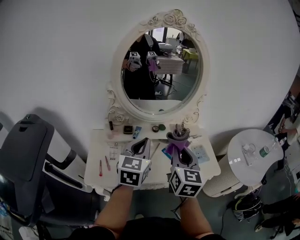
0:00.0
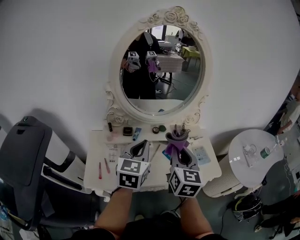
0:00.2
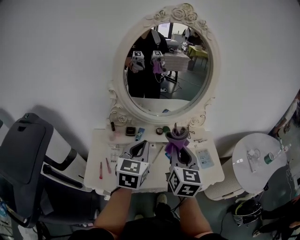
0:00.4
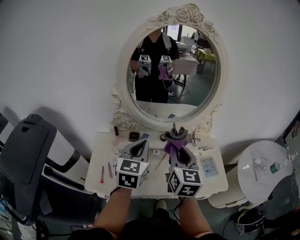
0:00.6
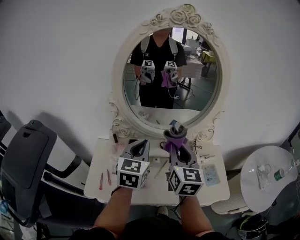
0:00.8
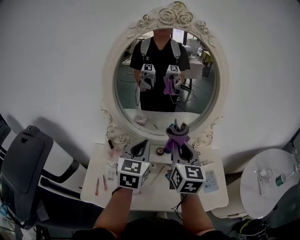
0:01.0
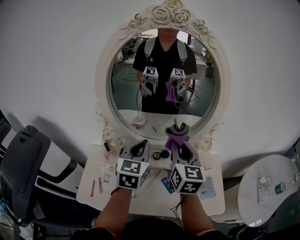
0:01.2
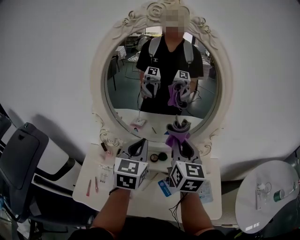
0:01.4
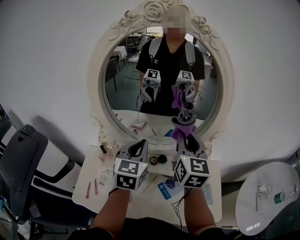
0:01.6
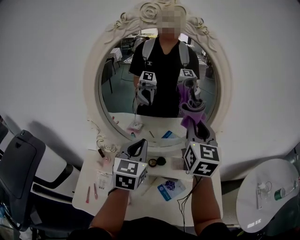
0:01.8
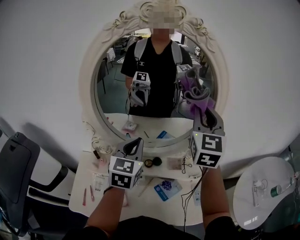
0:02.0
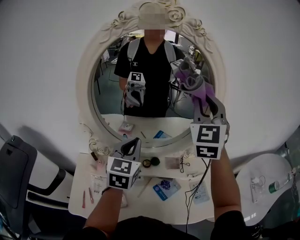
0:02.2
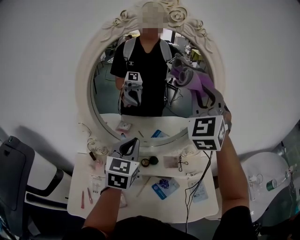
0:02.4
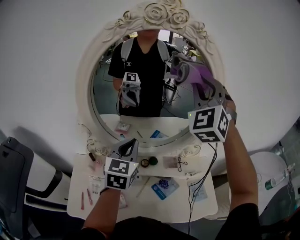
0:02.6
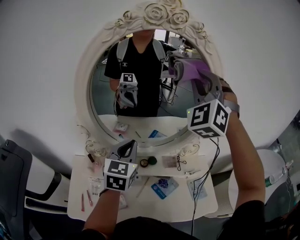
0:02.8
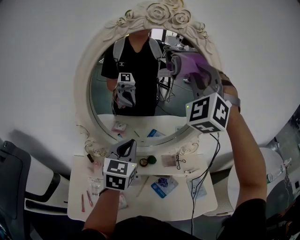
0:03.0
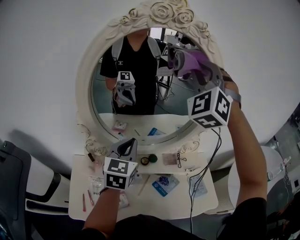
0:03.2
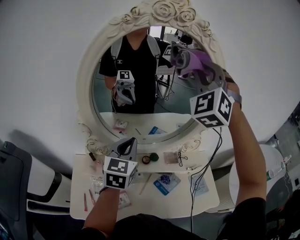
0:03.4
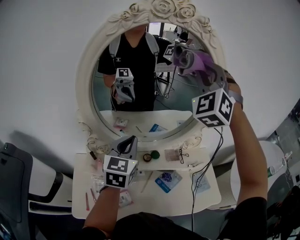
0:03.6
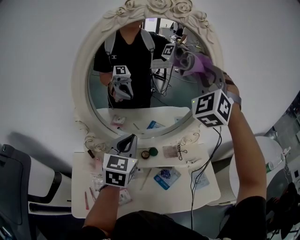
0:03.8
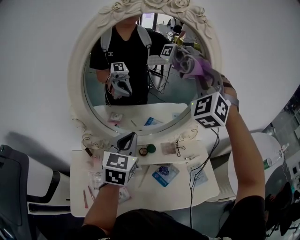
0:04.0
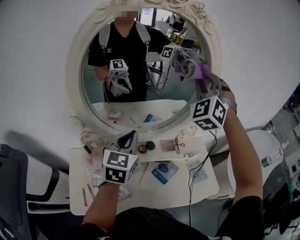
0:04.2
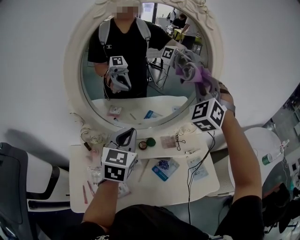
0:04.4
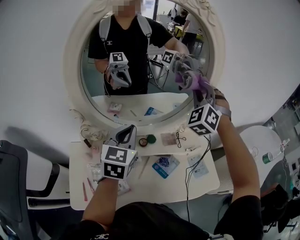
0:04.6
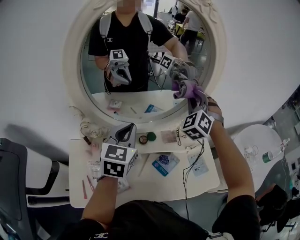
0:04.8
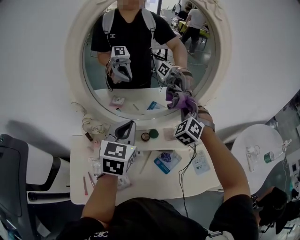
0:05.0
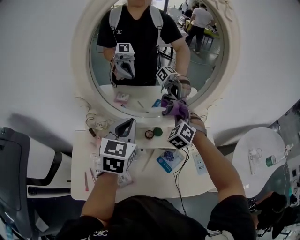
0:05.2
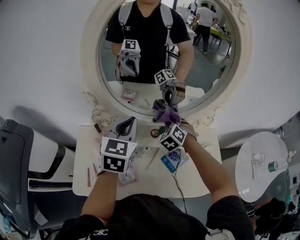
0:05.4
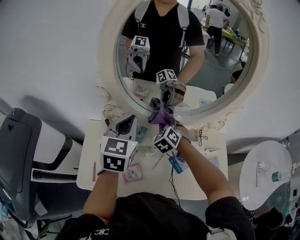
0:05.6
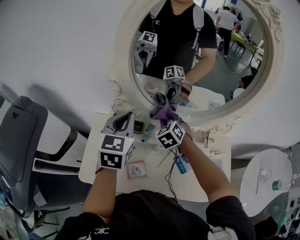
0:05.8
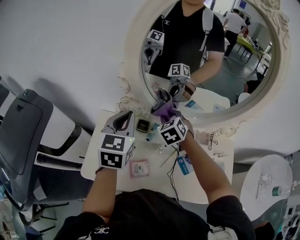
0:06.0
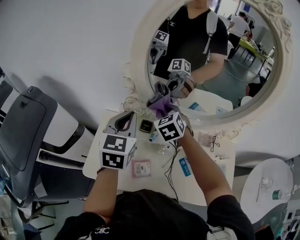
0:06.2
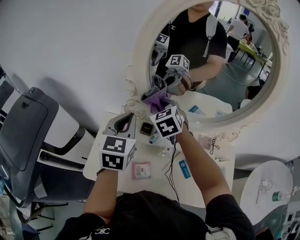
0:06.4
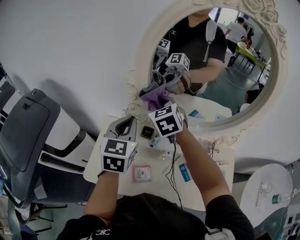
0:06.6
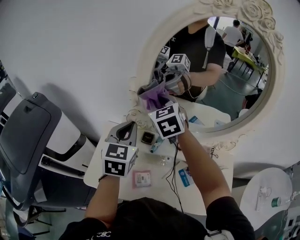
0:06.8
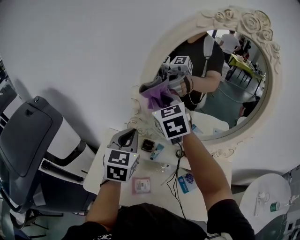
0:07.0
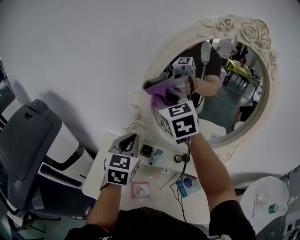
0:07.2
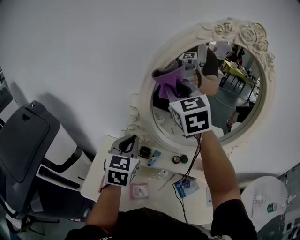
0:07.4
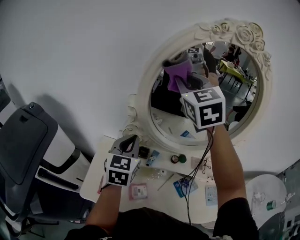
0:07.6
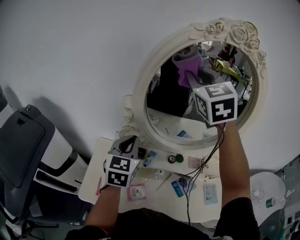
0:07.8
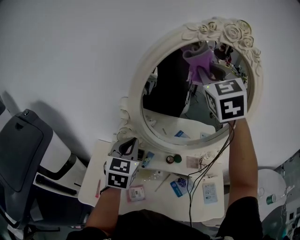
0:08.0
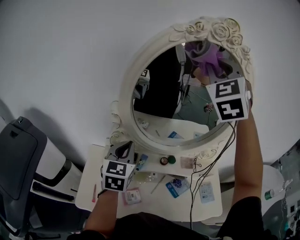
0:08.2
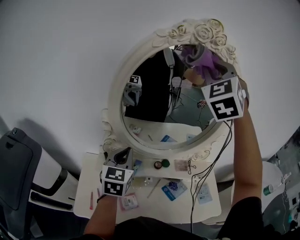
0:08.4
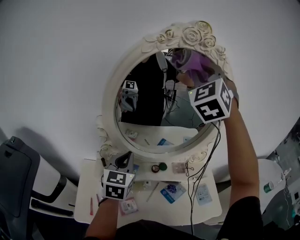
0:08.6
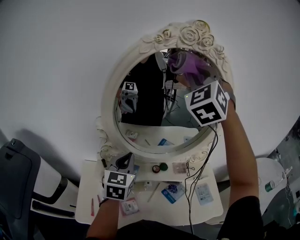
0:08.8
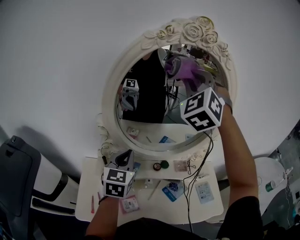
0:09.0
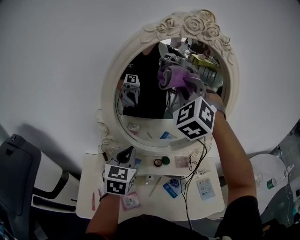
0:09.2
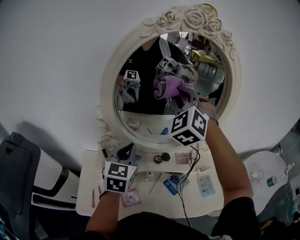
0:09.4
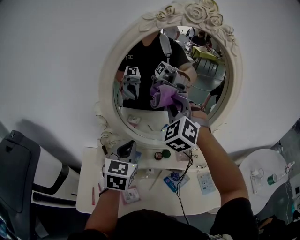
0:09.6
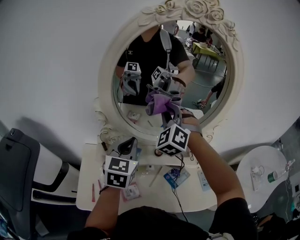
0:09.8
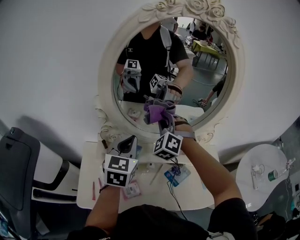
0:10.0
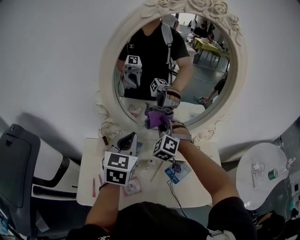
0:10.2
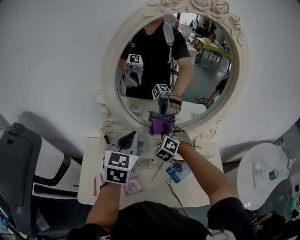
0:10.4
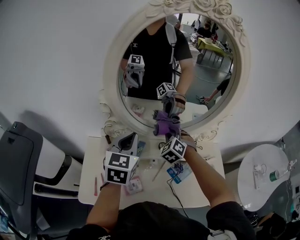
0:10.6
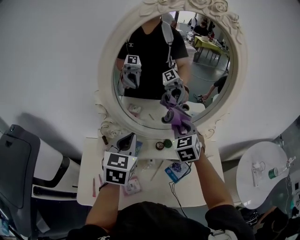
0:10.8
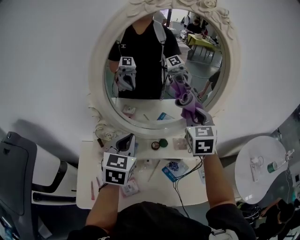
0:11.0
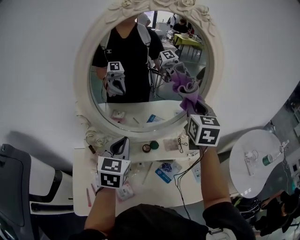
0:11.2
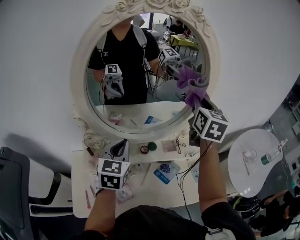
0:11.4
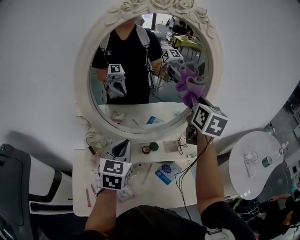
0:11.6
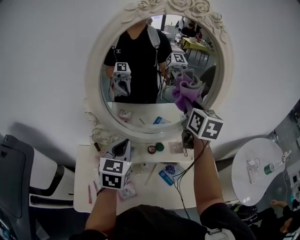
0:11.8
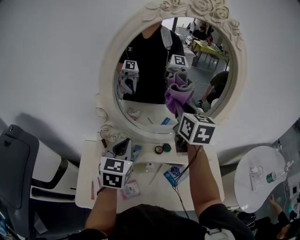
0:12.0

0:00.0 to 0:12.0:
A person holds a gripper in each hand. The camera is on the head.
0:00.0 to 0:01.6: Both grippers move forward, some 25 cm.
0:01.6 to 0:03.0: The right gripper goes about 20 cm upward, and rolls counterclockwise, seen from behind, by roughly 80 degrees.
0:03.0 to 0:04.4: The right gripper travels downward and to the right by approximately 15 cm.
0:04.4 to 0:06.0: The right gripper goes some 30 cm downward, and tips its fingers downward by roughly 40 degrees. The left gripper shifts by roughly 15 cm, and swivels approximately 20 degrees.
0:06.0 to 0:07.6: The right gripper moves upward, approximately 40 cm, and points its fingers some 30 degrees further upward.
0:07.6 to 0:09.0: The right gripper shifts roughly 15 cm to the right, and swivels approximately 40 degrees. The left gripper moves to the right, approximately 10 cm.
0:09.0 to 0:10.4: The right gripper shifts some 40 cm downward, and tilts its fingers roughly 30 degrees downward.
0:10.4 to 0:12.0: The right gripper moves upward, some 25 cm, and rotates around the line of its fingers by about 70 degrees, clockwise from behind.

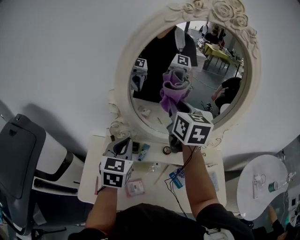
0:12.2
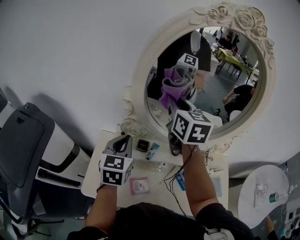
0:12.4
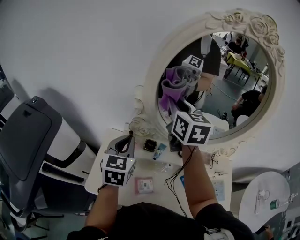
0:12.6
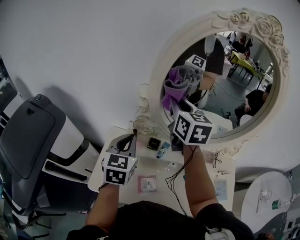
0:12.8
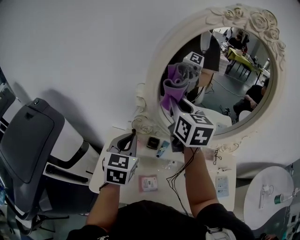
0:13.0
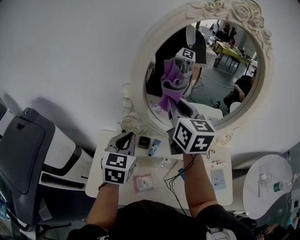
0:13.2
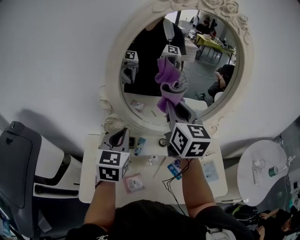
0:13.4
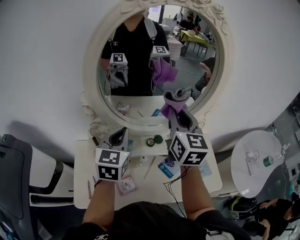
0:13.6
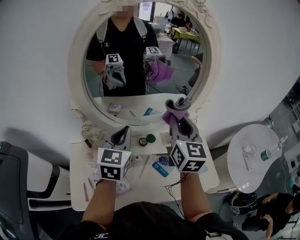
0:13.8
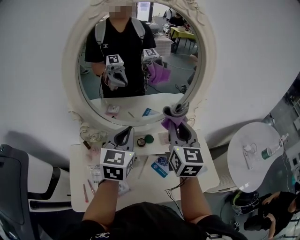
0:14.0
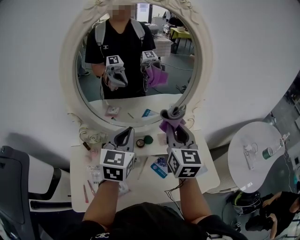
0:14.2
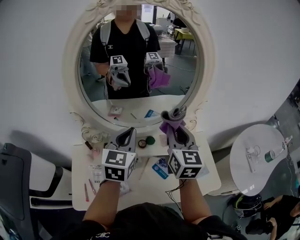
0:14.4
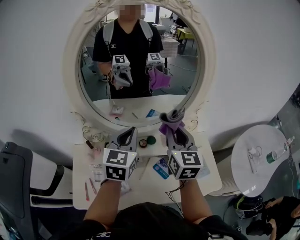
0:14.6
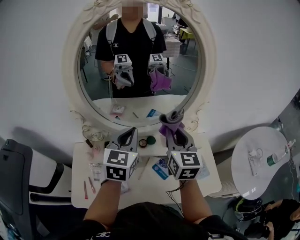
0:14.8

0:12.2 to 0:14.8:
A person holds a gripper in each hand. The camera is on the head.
0:12.2 to 0:13.4: The right gripper goes to the left and returns, about 10 cm each way; the left gripper travels to the left and back again, roughly 10 cm each way.
0:13.4 to 0:14.8: The right gripper heads to the right and downward, covering roughly 20 cm; the left gripper goes about 15 cm to the right.

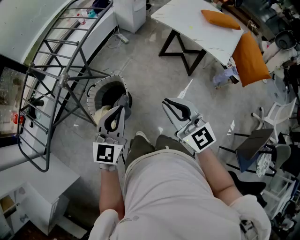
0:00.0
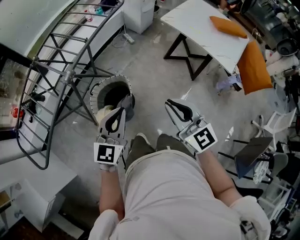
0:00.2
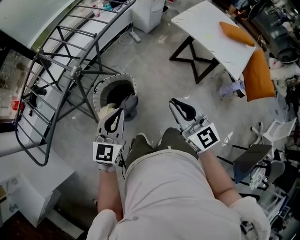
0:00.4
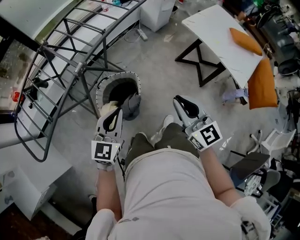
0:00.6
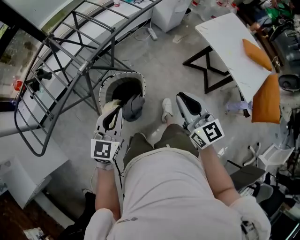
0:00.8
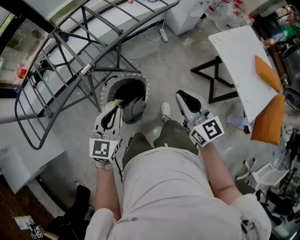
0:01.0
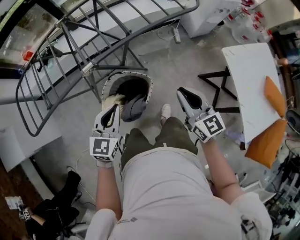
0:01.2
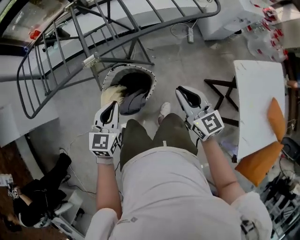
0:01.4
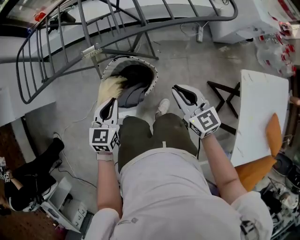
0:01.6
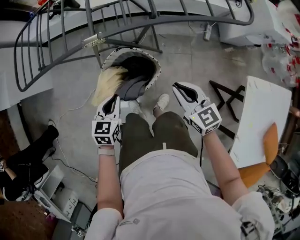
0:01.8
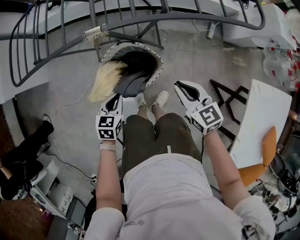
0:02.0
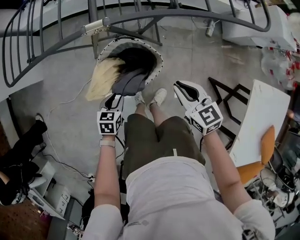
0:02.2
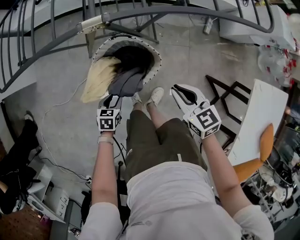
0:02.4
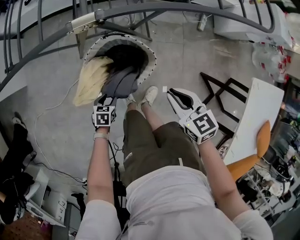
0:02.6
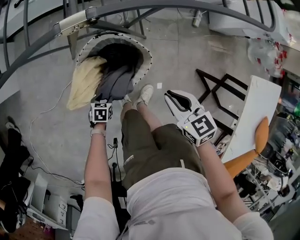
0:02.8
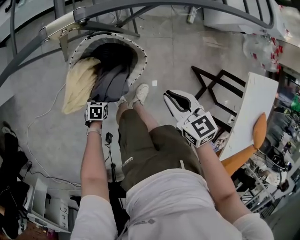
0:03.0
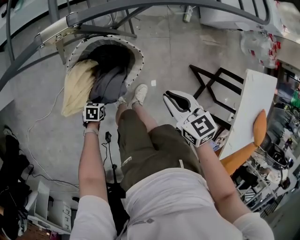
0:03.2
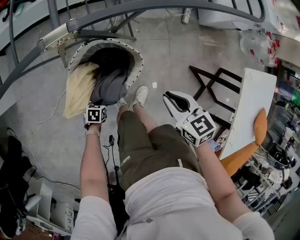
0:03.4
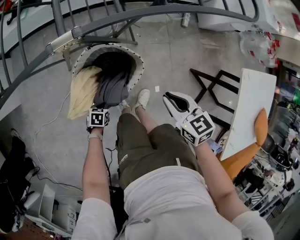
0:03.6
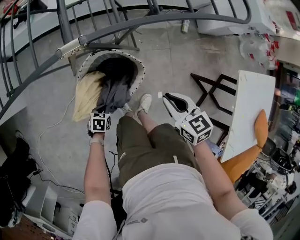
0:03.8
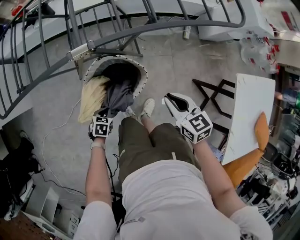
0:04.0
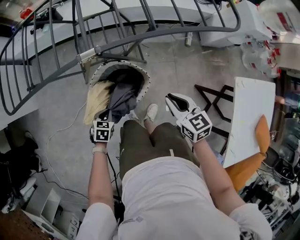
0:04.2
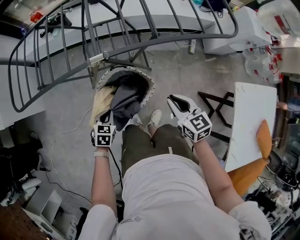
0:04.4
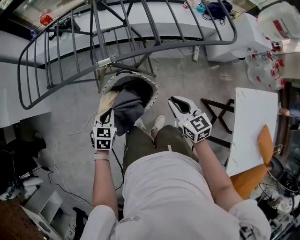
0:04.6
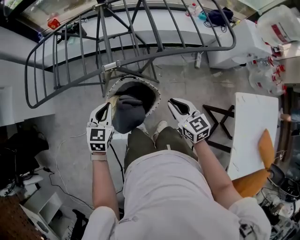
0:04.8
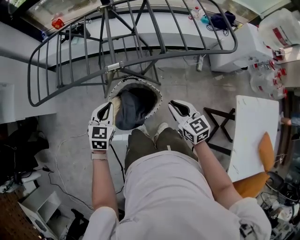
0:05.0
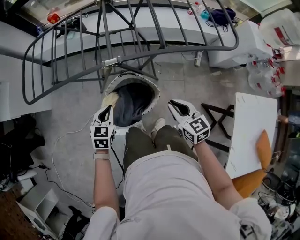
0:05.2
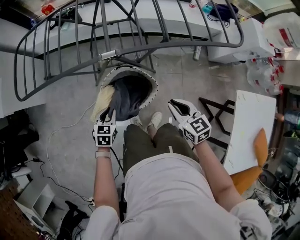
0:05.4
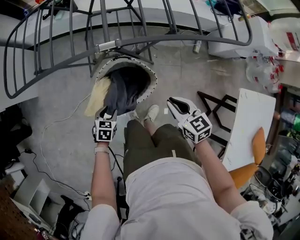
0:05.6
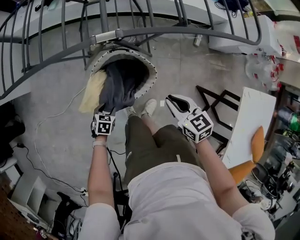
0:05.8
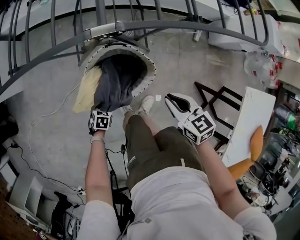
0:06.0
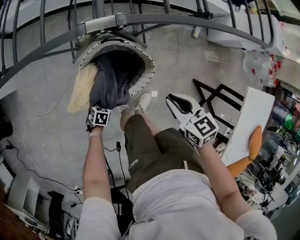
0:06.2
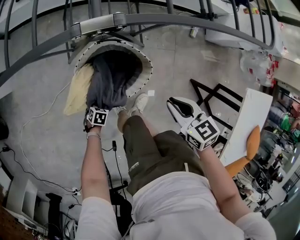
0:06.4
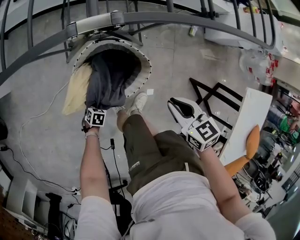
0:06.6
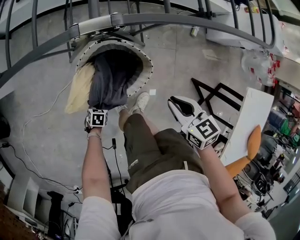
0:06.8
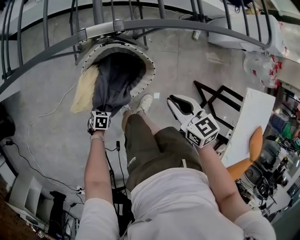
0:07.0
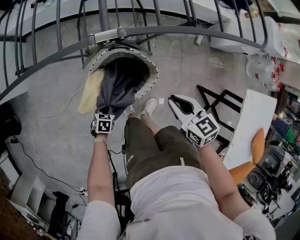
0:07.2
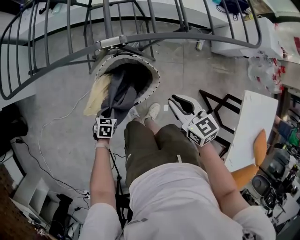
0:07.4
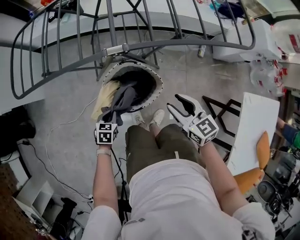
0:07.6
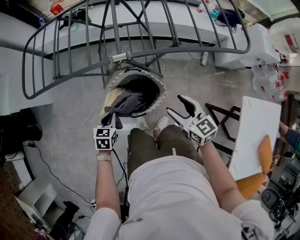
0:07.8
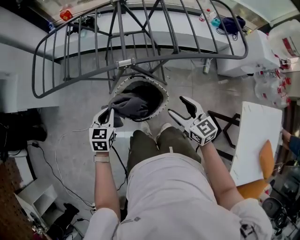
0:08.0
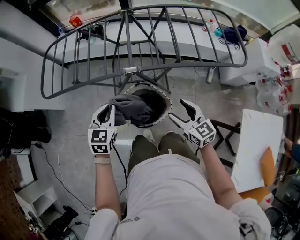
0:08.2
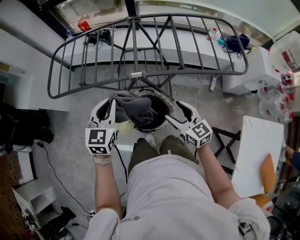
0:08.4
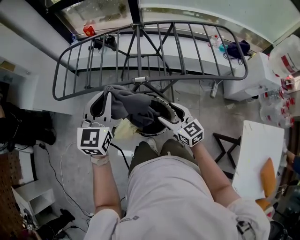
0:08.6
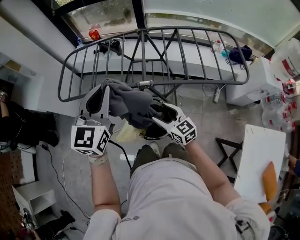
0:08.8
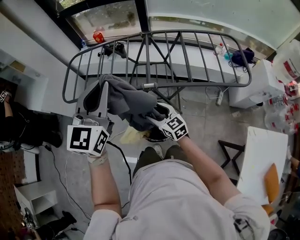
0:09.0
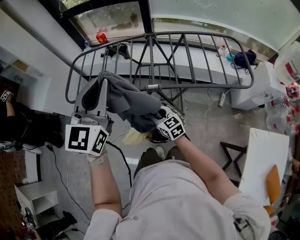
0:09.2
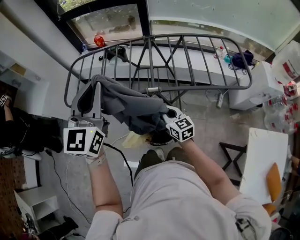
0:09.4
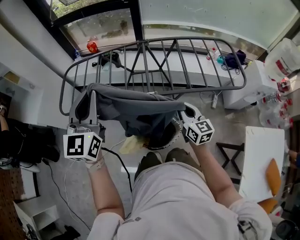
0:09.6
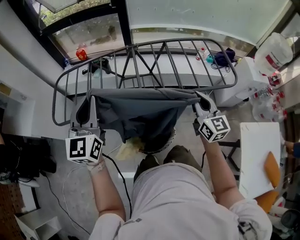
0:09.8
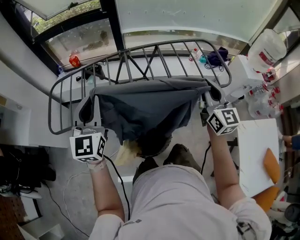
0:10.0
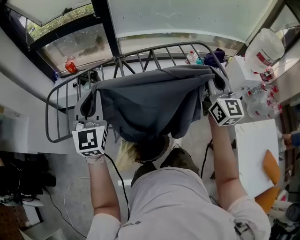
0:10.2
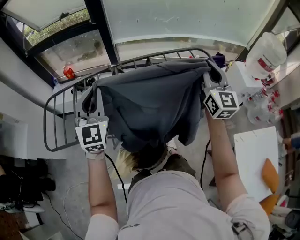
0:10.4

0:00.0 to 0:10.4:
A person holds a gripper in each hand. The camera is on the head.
0:00.0 to 0:01.4: The right gripper changes place by about 40 cm, and swivels about 40 degrees. Meanwhile the left gripper ends up roughly 30 cm from where it was, and rotates about 50 degrees.
0:01.4 to 0:03.0: The right gripper shifts approximately 20 cm downward, and rotates roughly 30 degrees. The left gripper goes about 50 cm downward, angles its fingers downward, by about 40 degrees, and opens.
0:03.0 to 0:04.4: The right gripper shifts approximately 10 cm upward. Meanwhile the left gripper travels upward by some 30 cm, turns by some 30 degrees, and closes up.
0:04.4 to 0:06.0: The right gripper shifts roughly 10 cm downward and to the left. The left gripper goes roughly 25 cm downward, changes its angle by some 20 degrees, and opens up.
0:06.0 to 0:07.4: The left gripper heads upward, covering approximately 10 cm, and closes its fingers, while the right gripper heads upward, covering some 5 cm.
0:07.4 to 0:09.0: The right gripper heads to the left, upward and forward, covering some 20 cm, swivels roughly 20 degrees, and opens its fingers, while the left gripper shifts roughly 70 cm upward, and points its fingers approximately 60 degrees further upward.
0:09.0 to 0:10.4: The right gripper is displaced to the right, upward and forward by roughly 50 cm, swivels approximately 60 degrees, and closes; the left gripper is displaced forward by about 20 cm.
